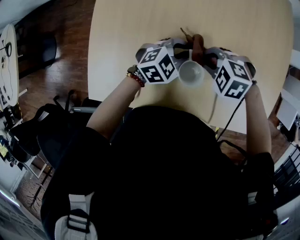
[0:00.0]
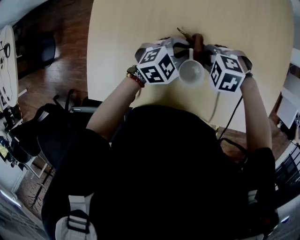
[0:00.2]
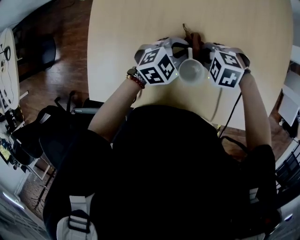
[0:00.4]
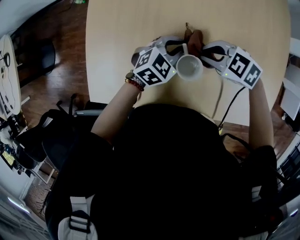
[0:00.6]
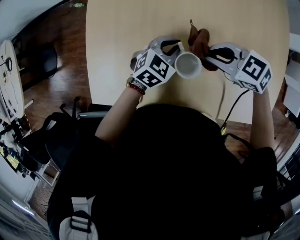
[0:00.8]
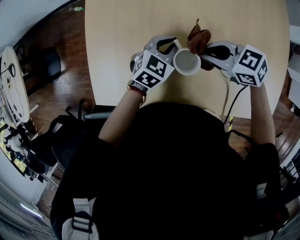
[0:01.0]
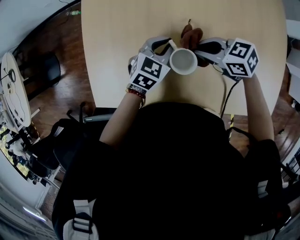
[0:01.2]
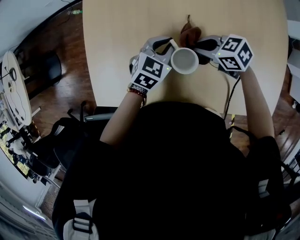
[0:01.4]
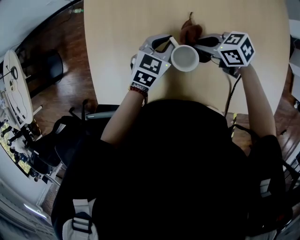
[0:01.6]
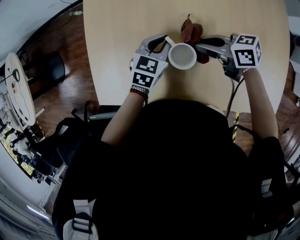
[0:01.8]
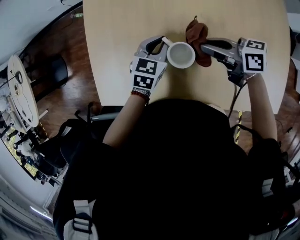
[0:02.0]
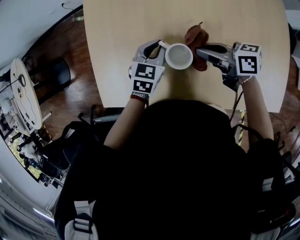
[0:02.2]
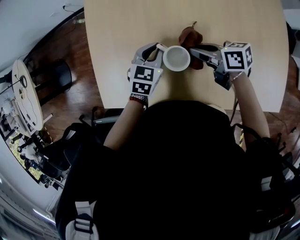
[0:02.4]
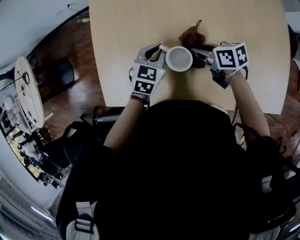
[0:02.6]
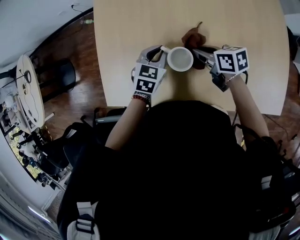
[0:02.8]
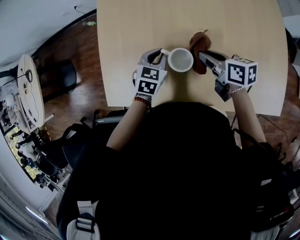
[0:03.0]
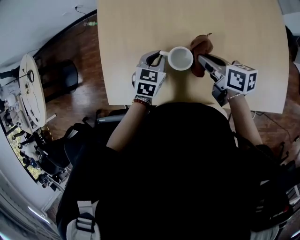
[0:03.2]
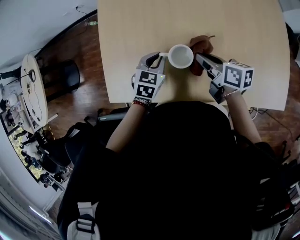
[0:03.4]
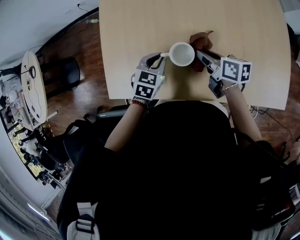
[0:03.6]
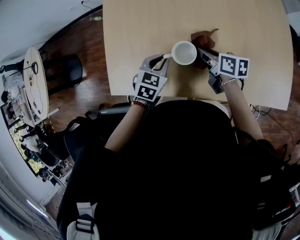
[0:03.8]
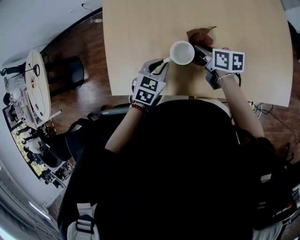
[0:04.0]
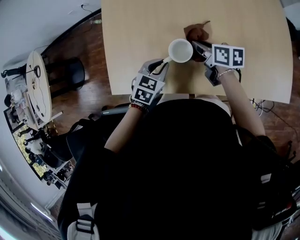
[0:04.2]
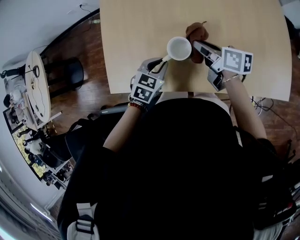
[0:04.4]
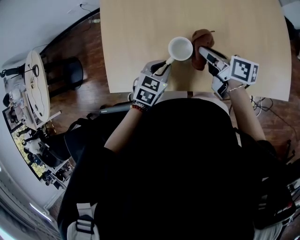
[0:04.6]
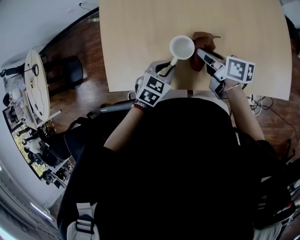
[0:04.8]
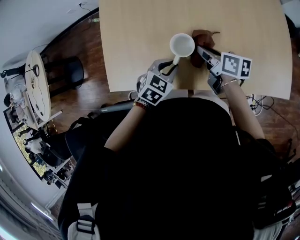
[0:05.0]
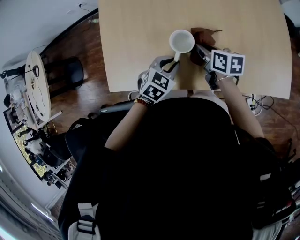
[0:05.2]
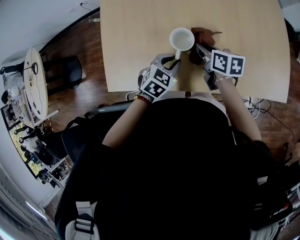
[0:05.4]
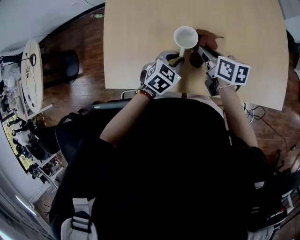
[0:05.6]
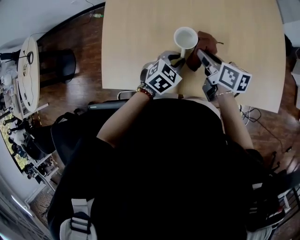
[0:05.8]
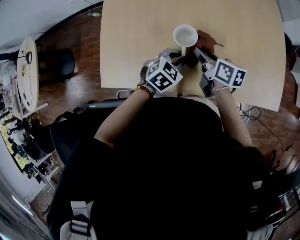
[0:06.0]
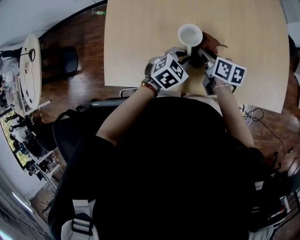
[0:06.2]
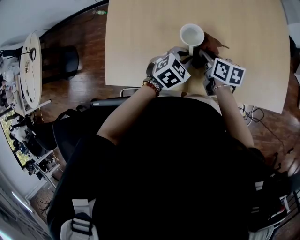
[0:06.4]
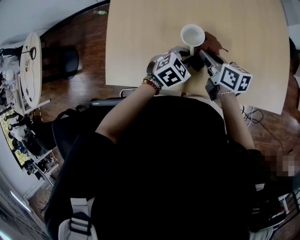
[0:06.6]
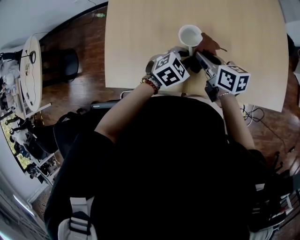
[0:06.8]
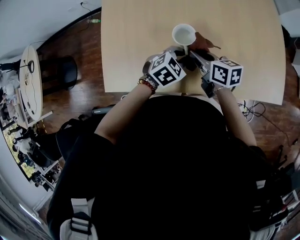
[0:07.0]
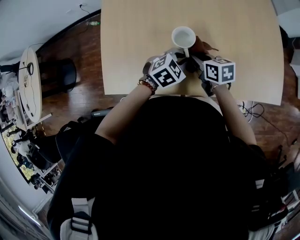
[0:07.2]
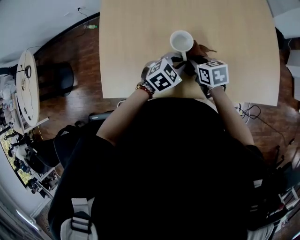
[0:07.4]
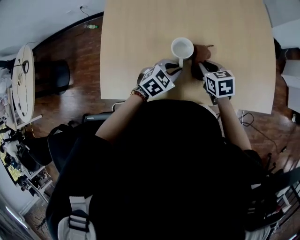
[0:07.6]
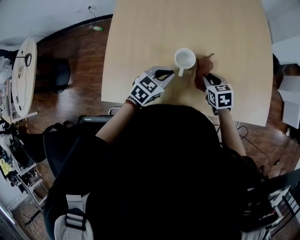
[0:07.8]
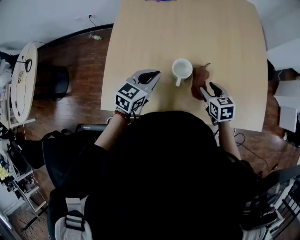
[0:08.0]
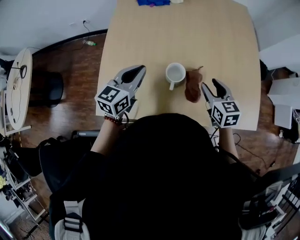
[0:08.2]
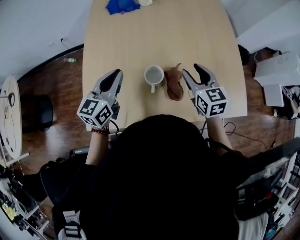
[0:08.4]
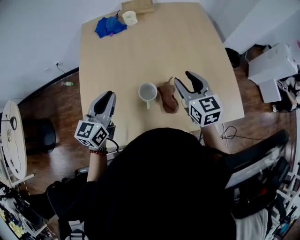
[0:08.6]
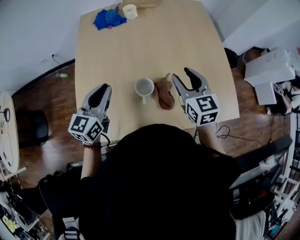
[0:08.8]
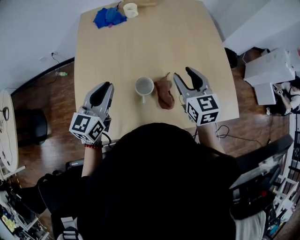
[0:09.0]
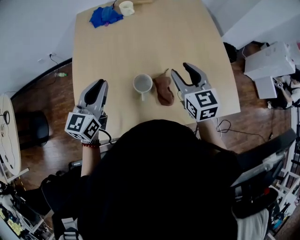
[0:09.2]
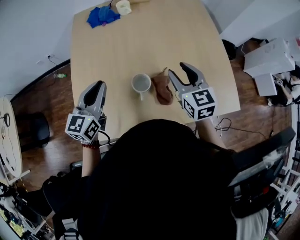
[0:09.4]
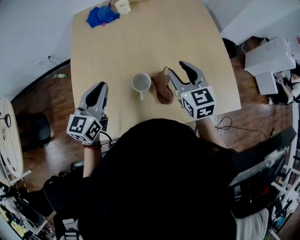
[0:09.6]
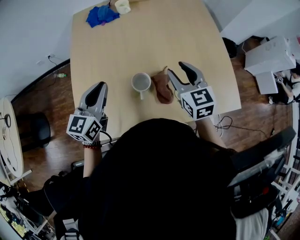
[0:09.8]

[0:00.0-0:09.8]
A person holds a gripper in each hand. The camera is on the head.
0:00.0 to 0:01.4: The left gripper rotates about 20 degrees, while the right gripper reaches roughly 5 cm upward, then returns, and twists roughly 40 degrees clockwise, seen from behind.
0:01.4 to 0:02.8: The right gripper rotates approximately 40 degrees. The left gripper shifts by some 5 cm.
0:02.8 to 0:04.2: The left gripper is displaced backward by some 10 cm.
0:04.2 to 0:05.6: The left gripper heads to the right, covering roughly 10 cm.
0:05.6 to 0:07.0: The grippers move only a little.
0:07.0 to 0:08.4: The left gripper is displaced upward and to the left by approximately 25 cm, and angles its fingers upward, by approximately 40 degrees; the right gripper heads upward, to the right and forward, covering approximately 15 cm, changes its angle by approximately 40 degrees, and opens its fingers.
0:08.4 to 0:09.8: The grippers move only a little.

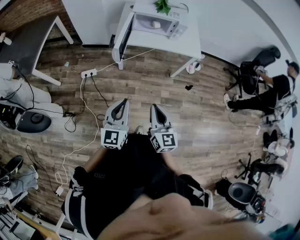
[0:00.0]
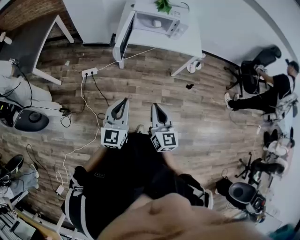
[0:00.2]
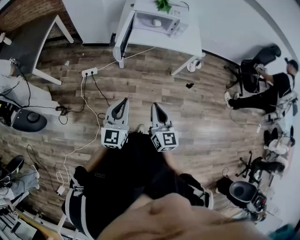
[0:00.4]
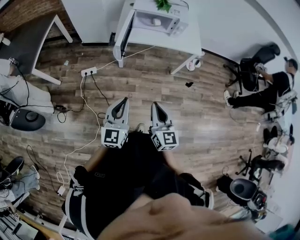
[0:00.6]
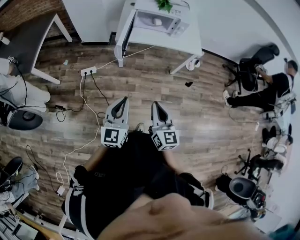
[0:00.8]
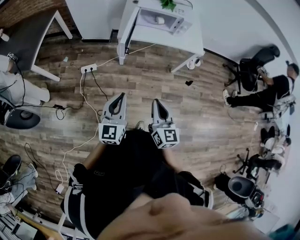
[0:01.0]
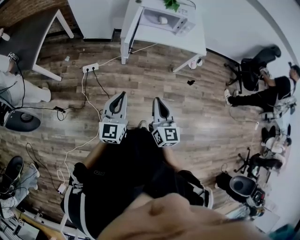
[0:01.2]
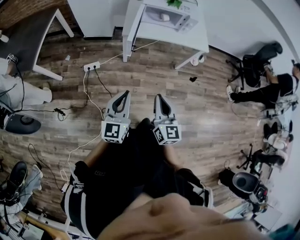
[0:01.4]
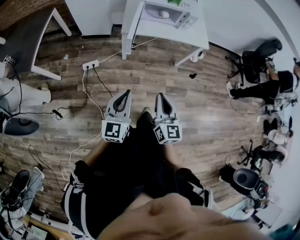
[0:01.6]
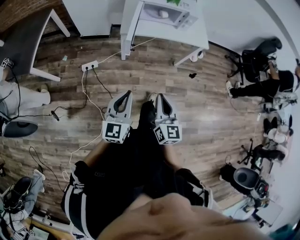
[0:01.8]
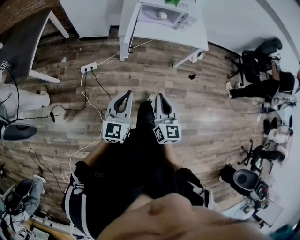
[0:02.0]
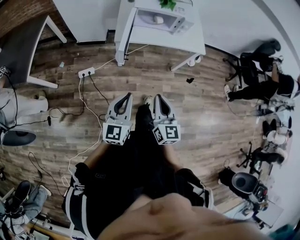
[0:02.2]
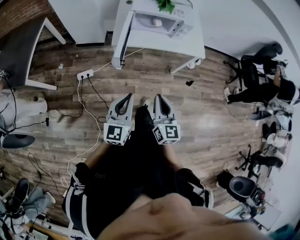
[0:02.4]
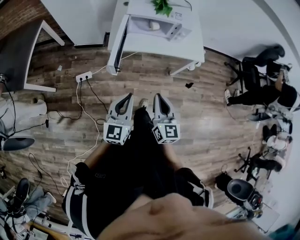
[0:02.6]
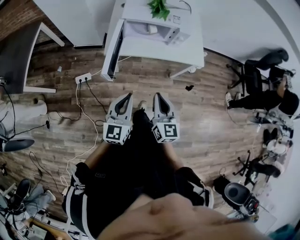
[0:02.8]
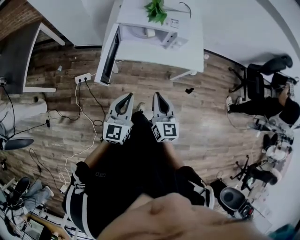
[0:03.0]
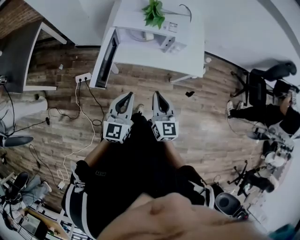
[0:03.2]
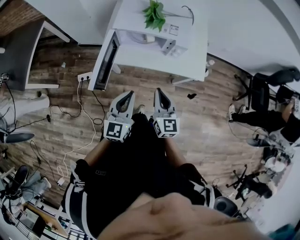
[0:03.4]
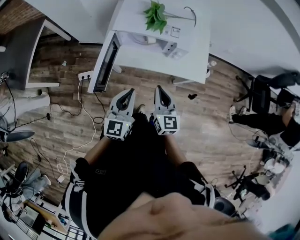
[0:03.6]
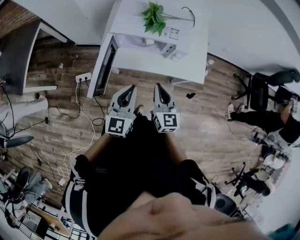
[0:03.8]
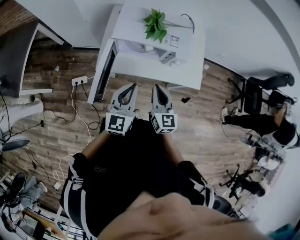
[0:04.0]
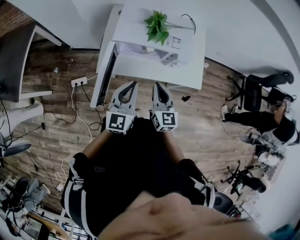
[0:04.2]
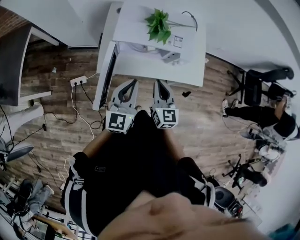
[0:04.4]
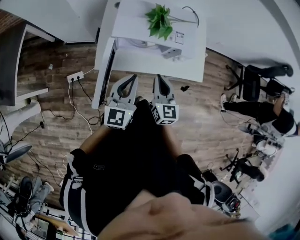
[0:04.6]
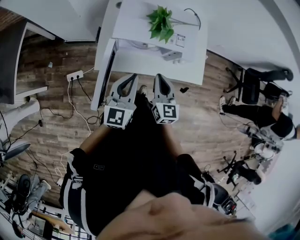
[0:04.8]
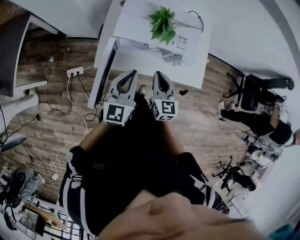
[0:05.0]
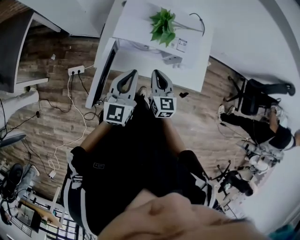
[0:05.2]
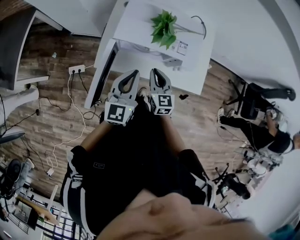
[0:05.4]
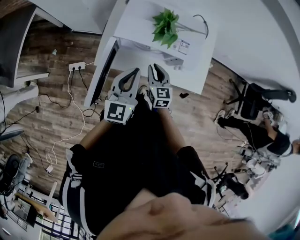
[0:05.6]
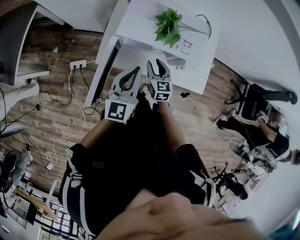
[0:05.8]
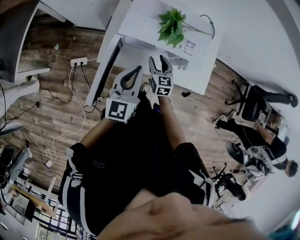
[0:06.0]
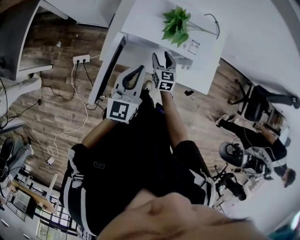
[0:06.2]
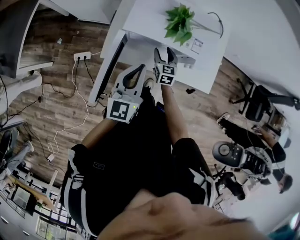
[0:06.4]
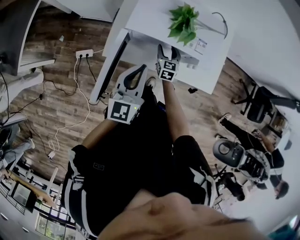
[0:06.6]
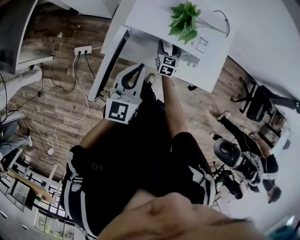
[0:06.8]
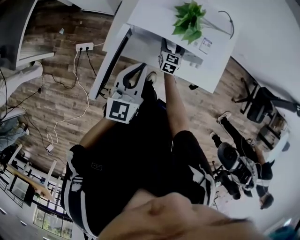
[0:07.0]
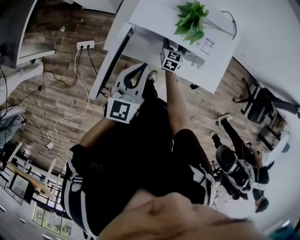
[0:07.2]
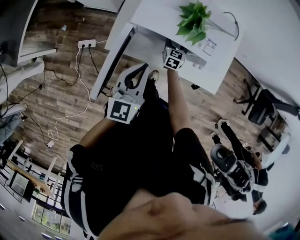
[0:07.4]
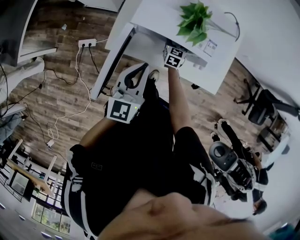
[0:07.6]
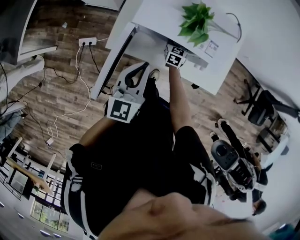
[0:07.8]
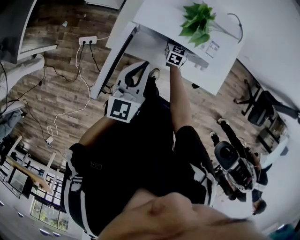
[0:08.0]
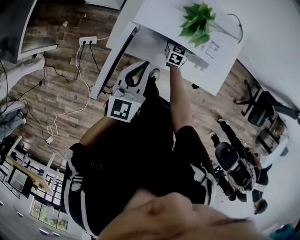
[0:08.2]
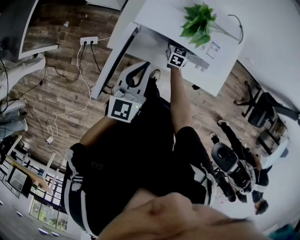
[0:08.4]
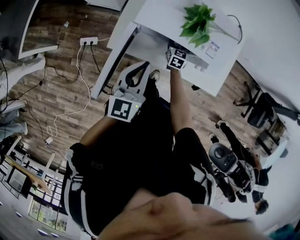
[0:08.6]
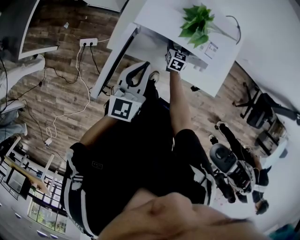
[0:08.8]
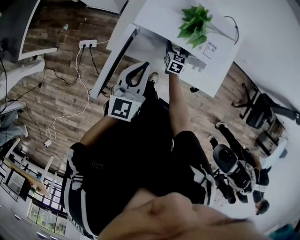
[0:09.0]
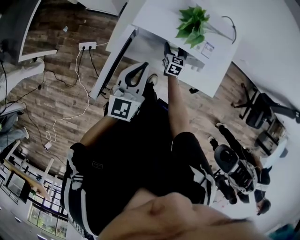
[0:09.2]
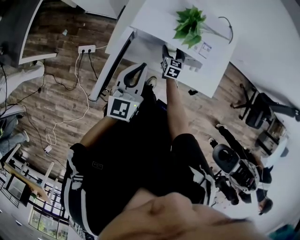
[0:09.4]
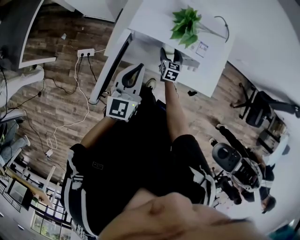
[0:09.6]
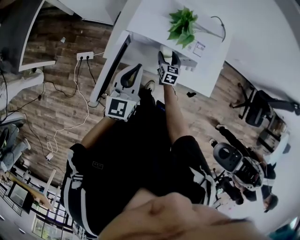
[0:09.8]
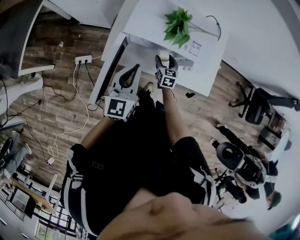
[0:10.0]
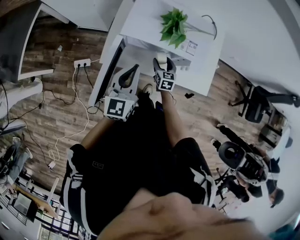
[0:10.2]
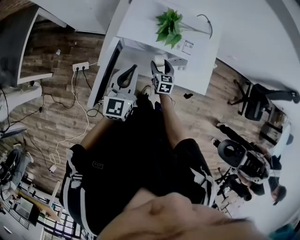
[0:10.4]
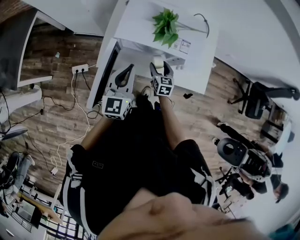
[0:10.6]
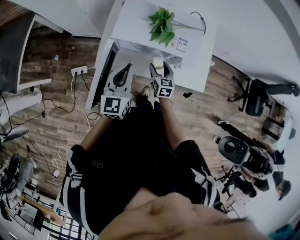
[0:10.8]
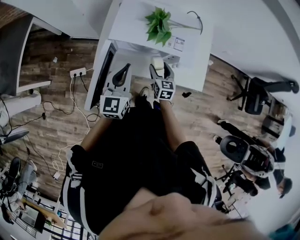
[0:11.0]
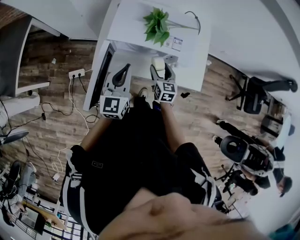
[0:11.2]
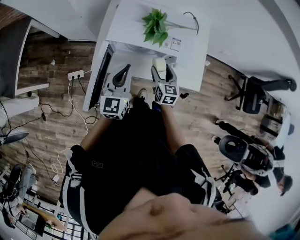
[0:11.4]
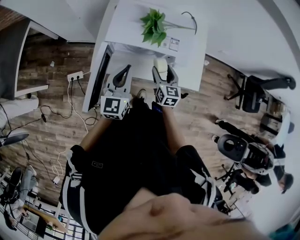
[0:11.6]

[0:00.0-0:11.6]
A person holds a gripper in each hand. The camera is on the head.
0:00.0 to 0:01.4: The two grippers go some 10 cm to the left.
0:01.4 to 0:02.8: The left gripper moves forward and to the right, roughly 25 cm; the right gripper travels forward by some 25 cm.
0:02.8 to 0:04.4: The grippers both shift forward by about 25 cm.
0:04.4 to 0:05.8: The right gripper moves downward and forward, about 15 cm, and opens its fingers; the left gripper goes about 5 cm forward.
0:05.8 to 0:07.2: The right gripper heads downward and forward, covering roughly 15 cm, and opens up.
0:07.2 to 0:08.8: The grippers stay close to where they were, moving slightly.
0:08.8 to 0:10.2: The right gripper shifts some 10 cm backward.
0:10.2 to 0:11.6: The right gripper heads upward and to the right, covering roughly 15 cm.

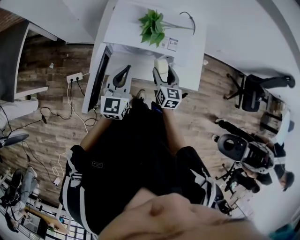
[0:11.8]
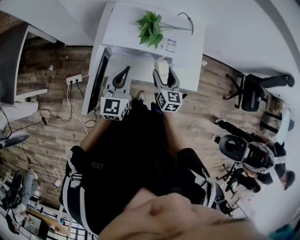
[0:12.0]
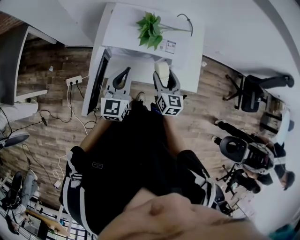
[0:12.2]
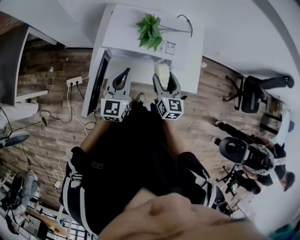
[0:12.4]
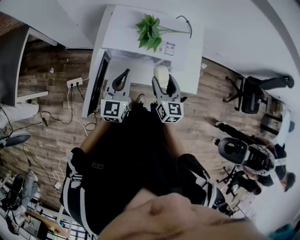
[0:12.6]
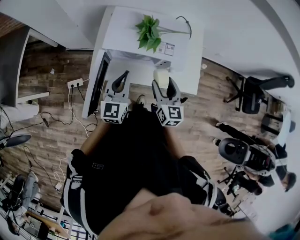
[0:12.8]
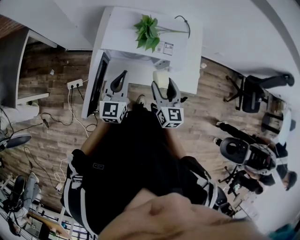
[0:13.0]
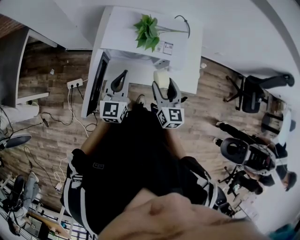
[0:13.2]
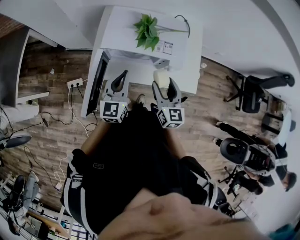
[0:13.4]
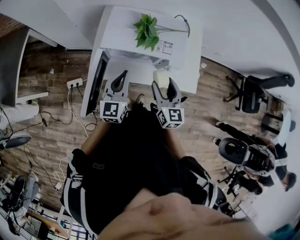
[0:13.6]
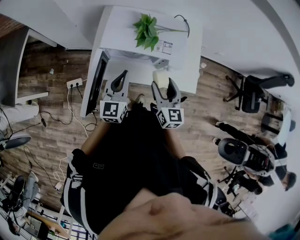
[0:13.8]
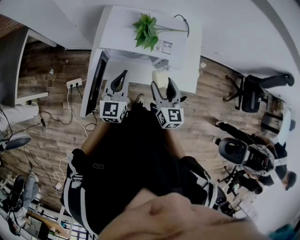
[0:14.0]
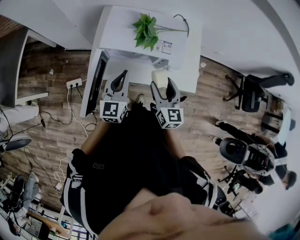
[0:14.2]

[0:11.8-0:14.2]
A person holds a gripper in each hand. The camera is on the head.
0:11.8 to 0:13.0: The right gripper heads upward, covering approximately 10 cm.
0:13.0 to 0:14.2: The two grippers keep their place.
